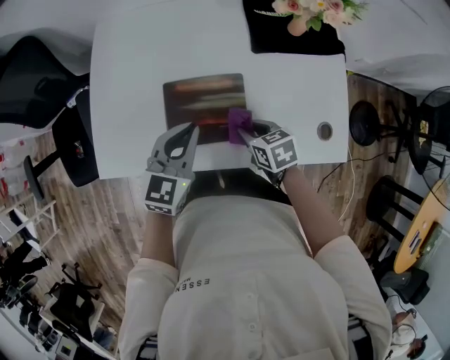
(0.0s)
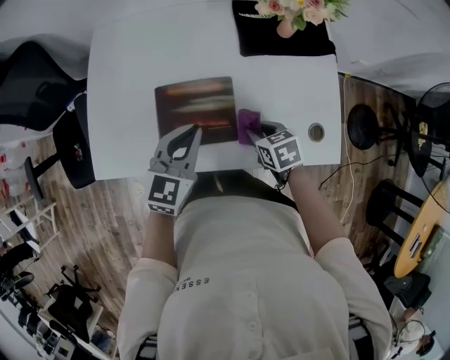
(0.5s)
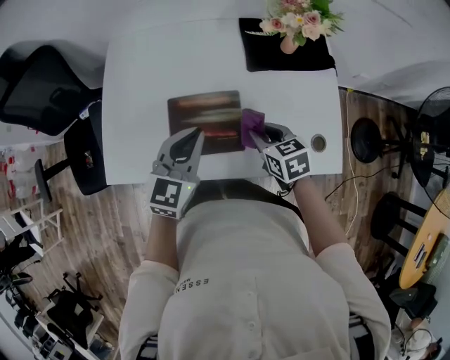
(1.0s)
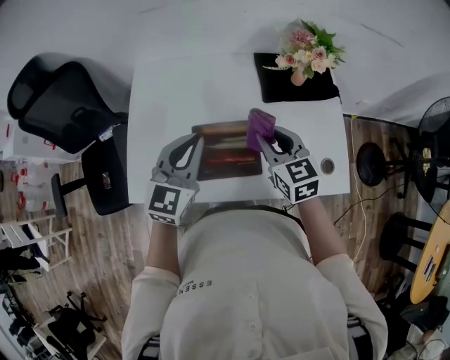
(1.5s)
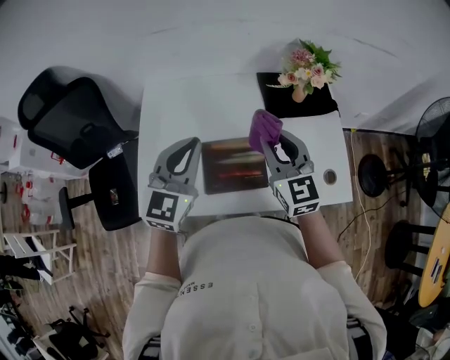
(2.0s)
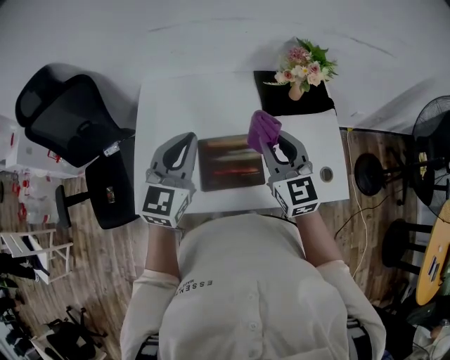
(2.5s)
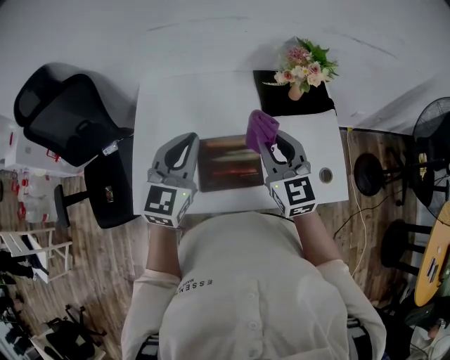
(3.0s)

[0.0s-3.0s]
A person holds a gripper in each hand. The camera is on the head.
0.0s to 1.5s: The right gripper shifts some 20 cm upward, and turns by some 40 degrees. The left gripper goes about 10 cm upward.
1.5s to 3.0s: The right gripper goes approximately 10 cm upward, while the left gripper shifts by approximately 5 cm.

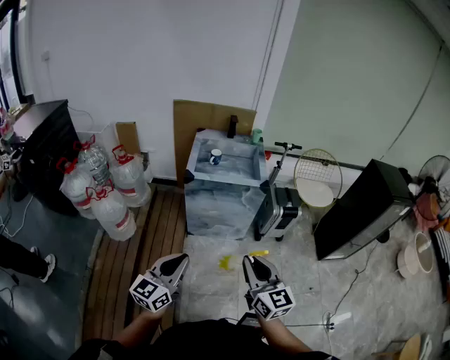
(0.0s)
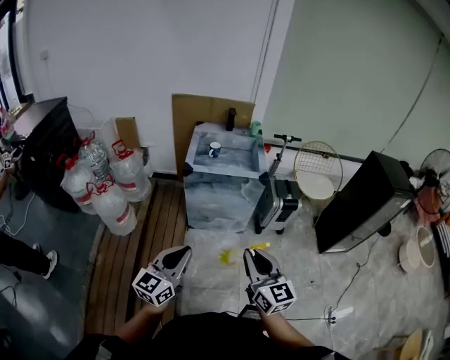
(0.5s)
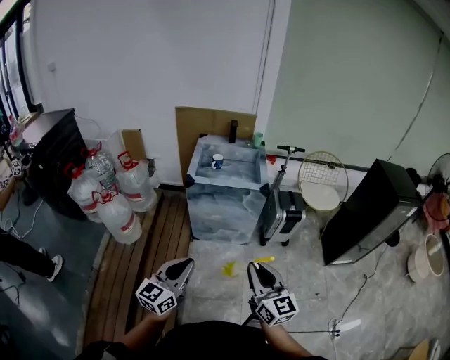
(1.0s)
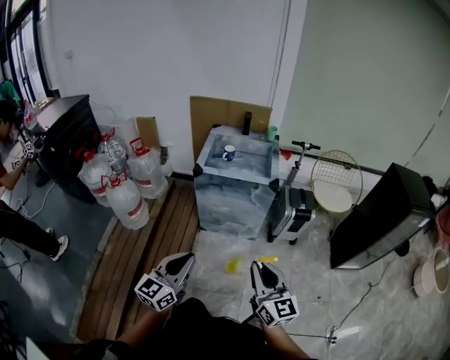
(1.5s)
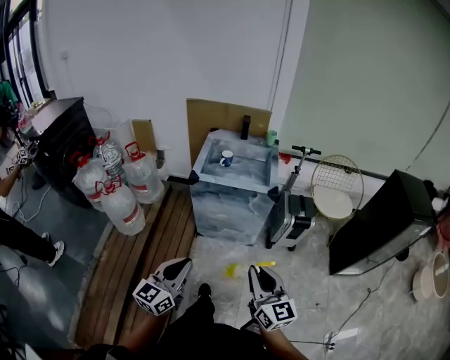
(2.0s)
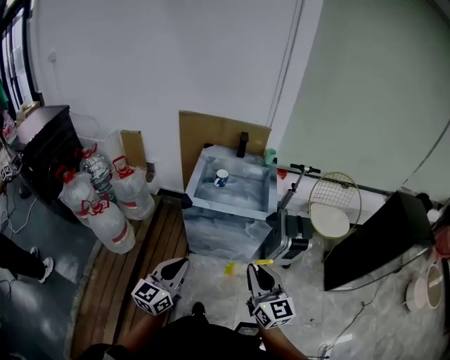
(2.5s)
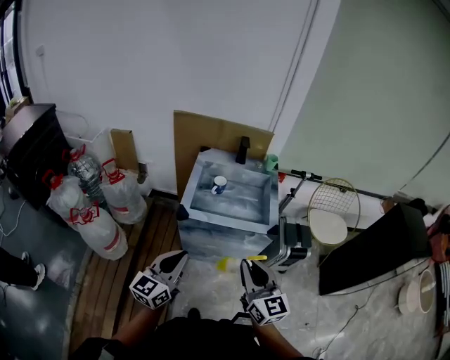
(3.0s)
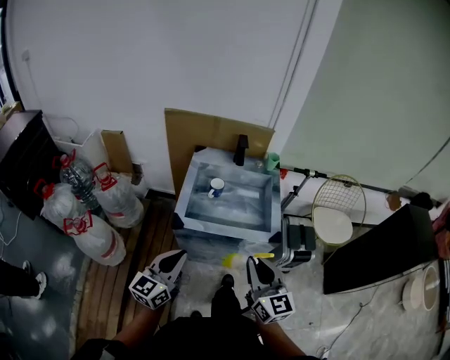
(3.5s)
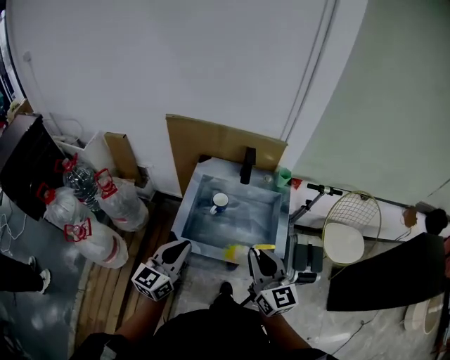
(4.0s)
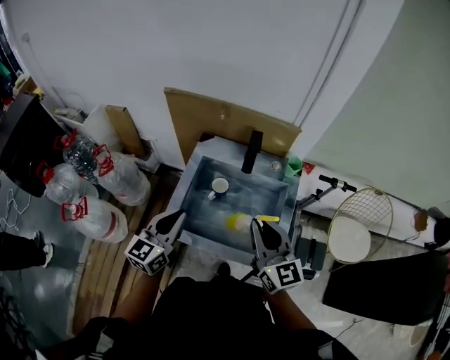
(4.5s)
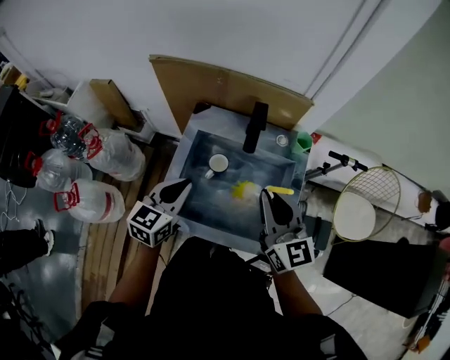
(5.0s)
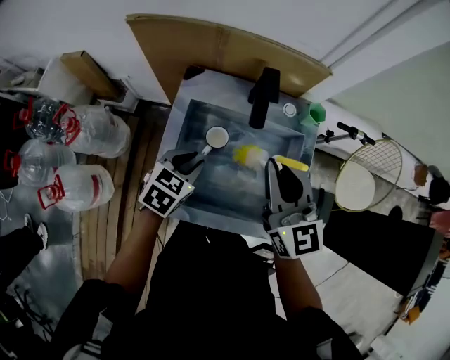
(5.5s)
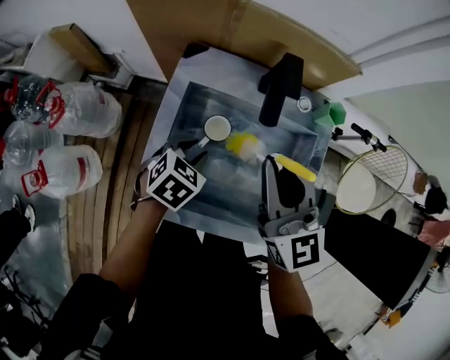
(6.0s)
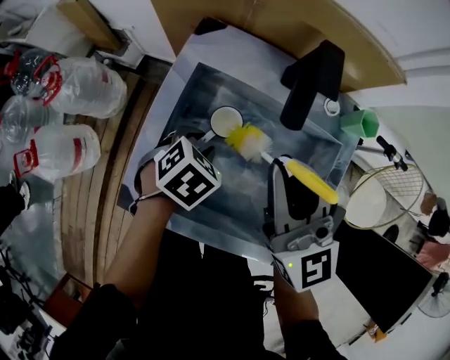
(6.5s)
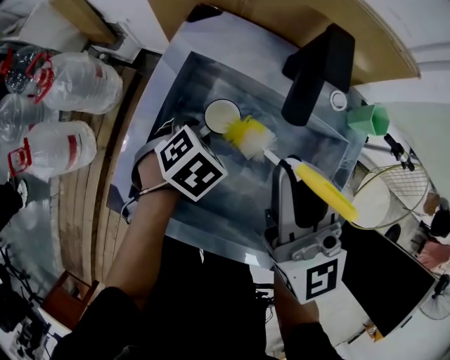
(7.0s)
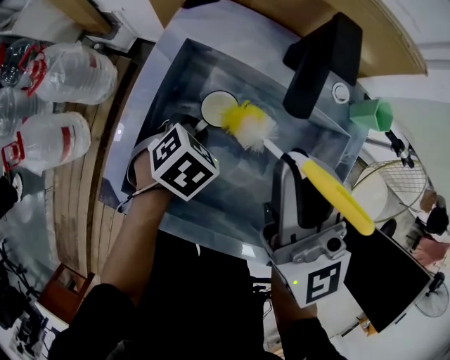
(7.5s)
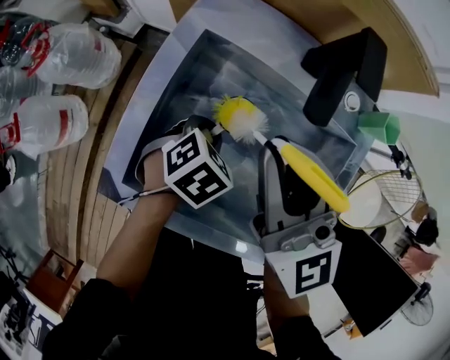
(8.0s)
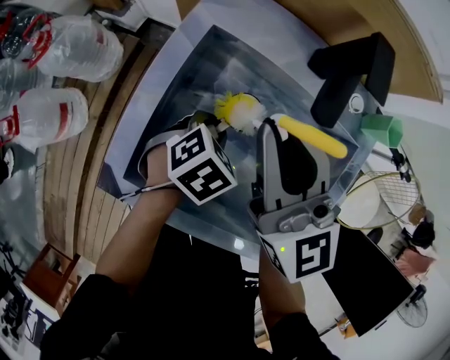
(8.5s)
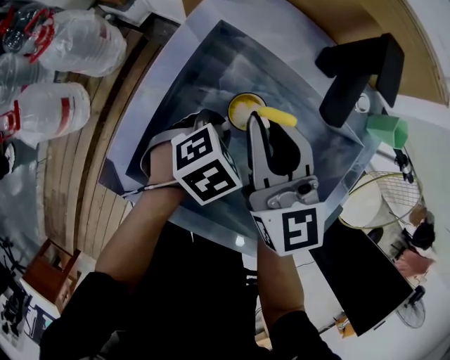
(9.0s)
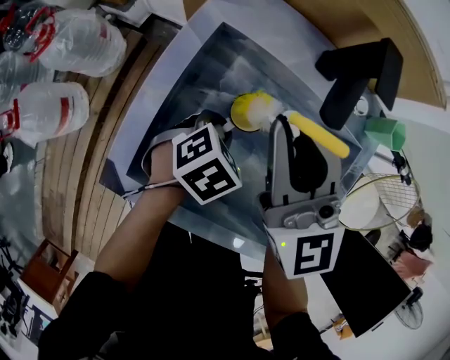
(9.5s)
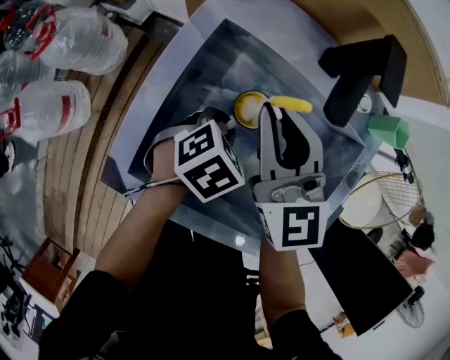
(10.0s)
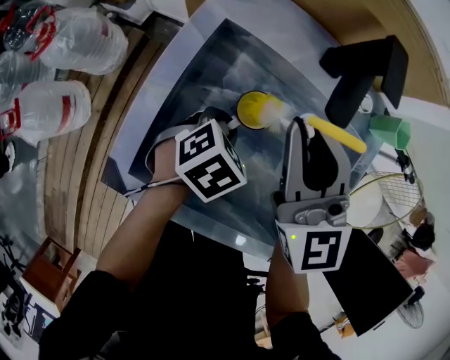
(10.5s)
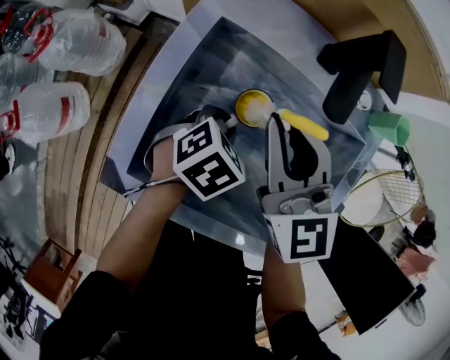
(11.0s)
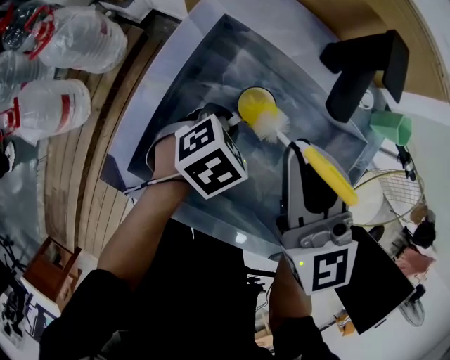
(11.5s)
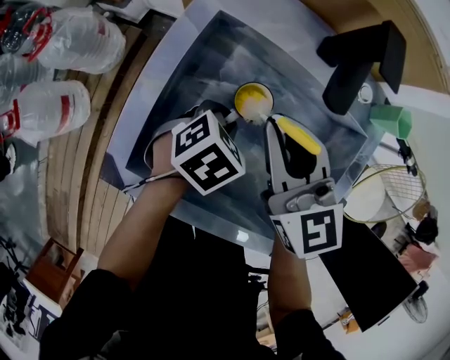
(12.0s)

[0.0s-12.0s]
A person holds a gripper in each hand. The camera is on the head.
0.0s to 2.0s: The two grippers go some 10 cm to the right.
2.0s to 4.0s: The two grippers travel together, forward, roughly 50 cm.
4.0s to 6.0s: The right gripper heads forward, covering approximately 25 cm. The left gripper moves downward and forward, some 35 cm, tips its fingers downward by some 60 degrees, and opens up.
6.0s to 8.0s: The left gripper moves downward, about 10 cm, while the right gripper ends up about 5 cm from where it was.
8.0s to 10.0s: The right gripper swings up and down, approximately 10 cm each way, with 2 reversals.

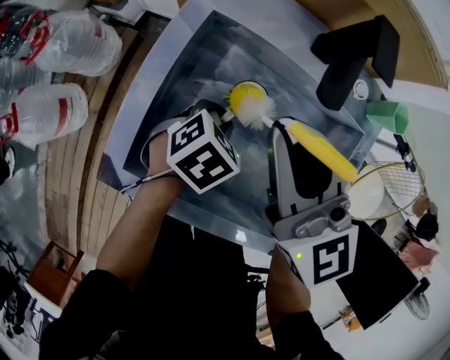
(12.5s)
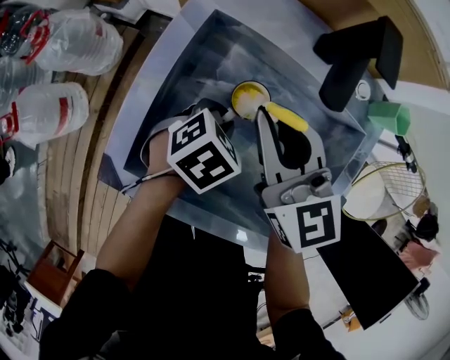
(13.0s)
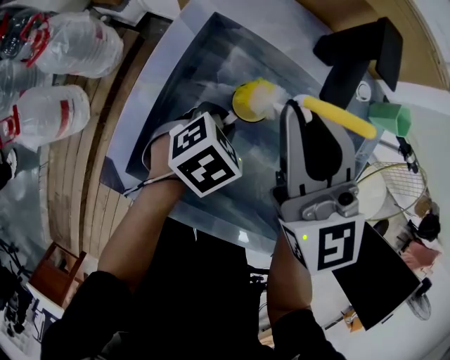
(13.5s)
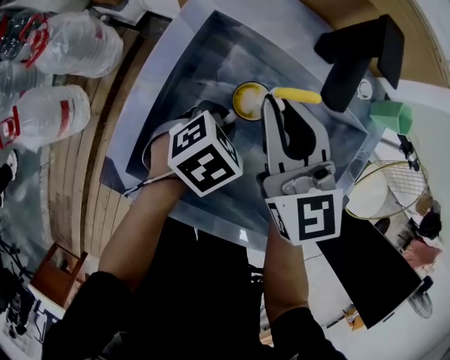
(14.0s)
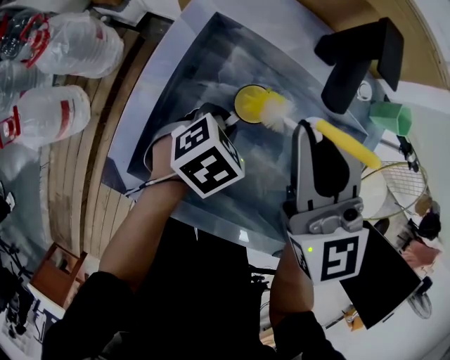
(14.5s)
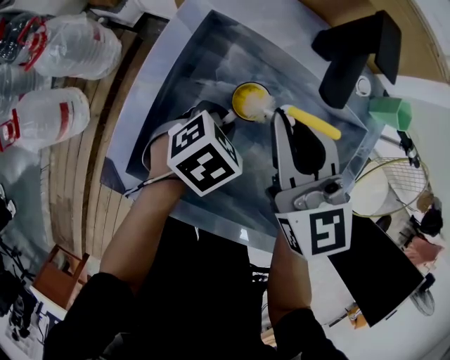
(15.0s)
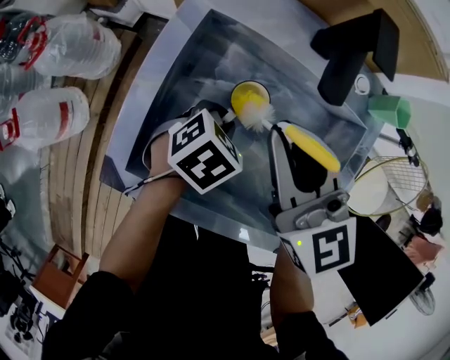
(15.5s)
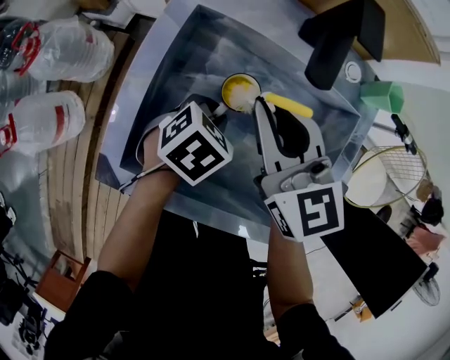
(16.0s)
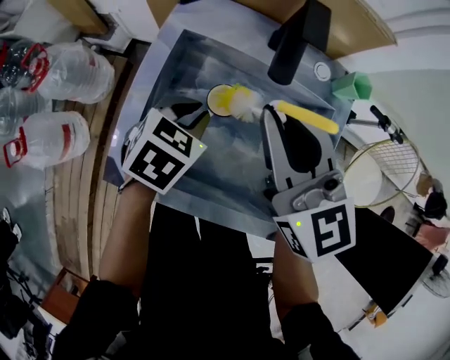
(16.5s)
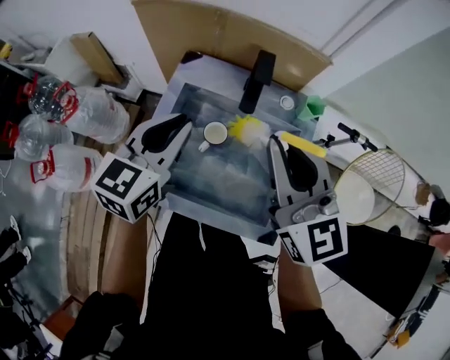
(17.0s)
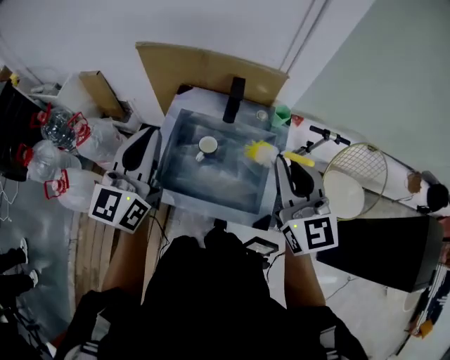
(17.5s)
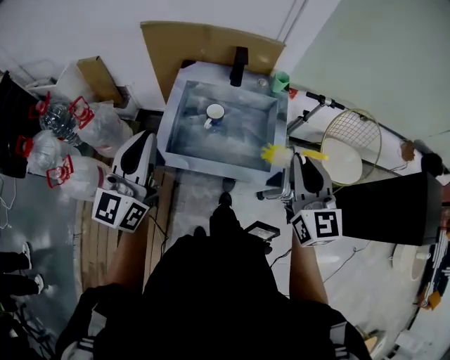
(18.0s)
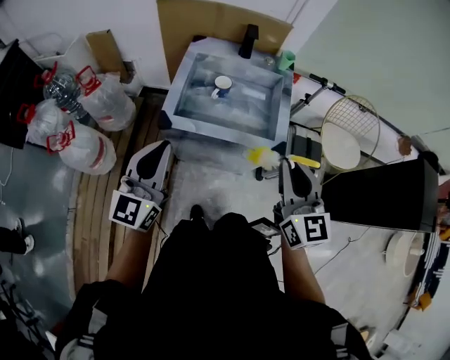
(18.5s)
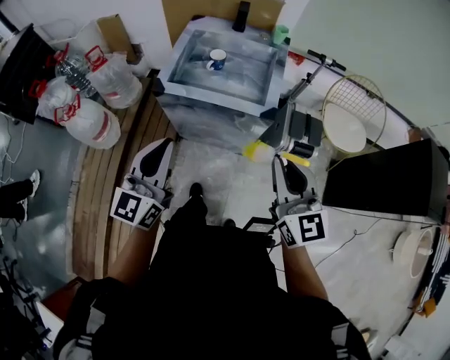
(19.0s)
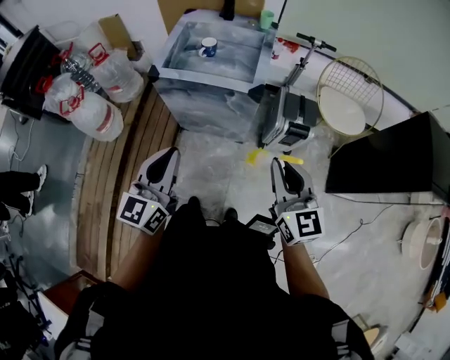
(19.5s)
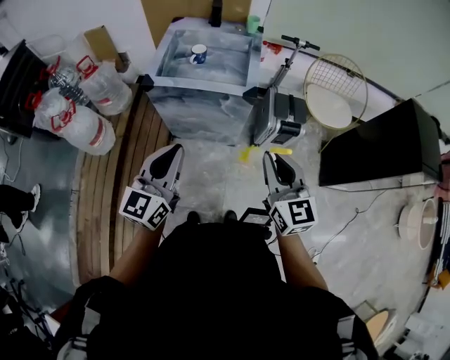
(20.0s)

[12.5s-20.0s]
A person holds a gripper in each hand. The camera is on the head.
12.5s to 14.5s: The right gripper goes up and down, approximately 5 cm each way, reversing 3 times.
14.5s to 16.5s: The right gripper changes place by roughly 5 cm, while the left gripper moves upward, roughly 10 cm.
16.5s to 18.0s: The left gripper heads upward and backward, covering about 40 cm, and tips its fingers upward by some 60 degrees, while the right gripper heads backward, upward and to the right, covering some 35 cm, and swivels approximately 30 degrees.
18.0s to 20.0s: The left gripper moves backward and to the right, about 40 cm. Meanwhile the right gripper goes some 35 cm backward.

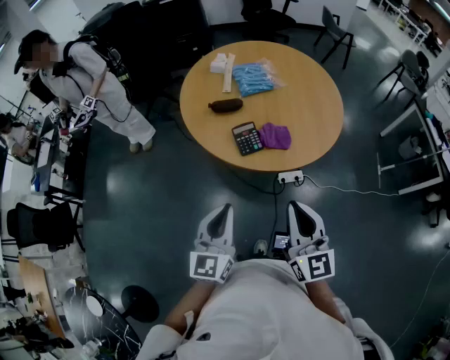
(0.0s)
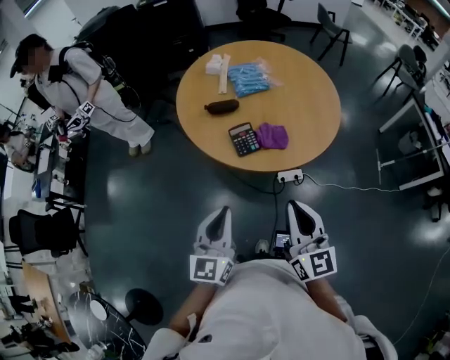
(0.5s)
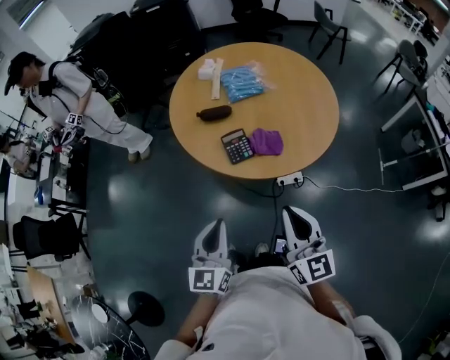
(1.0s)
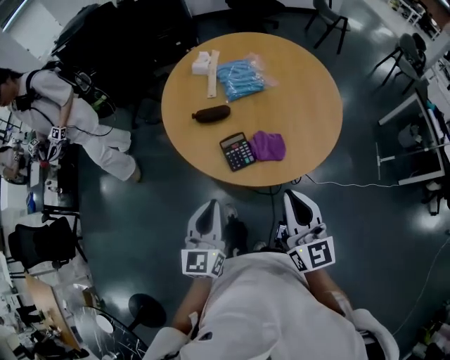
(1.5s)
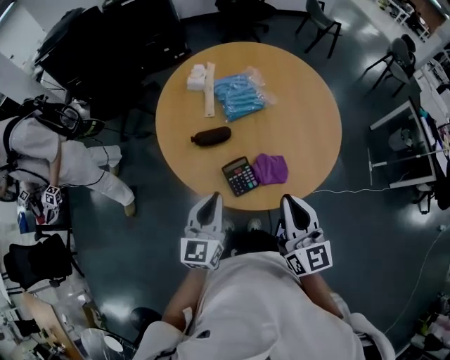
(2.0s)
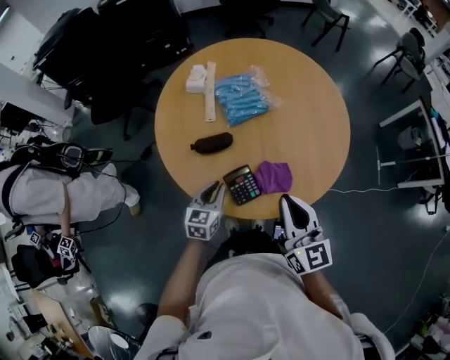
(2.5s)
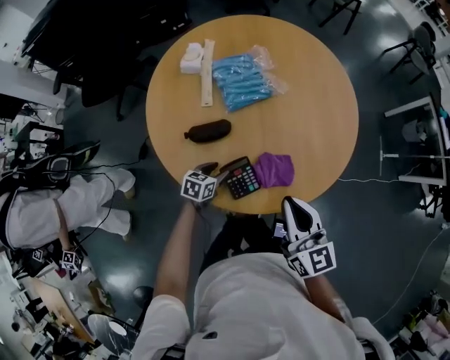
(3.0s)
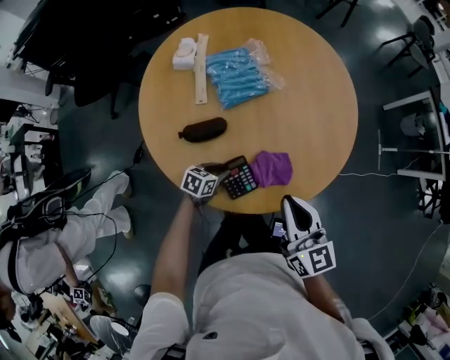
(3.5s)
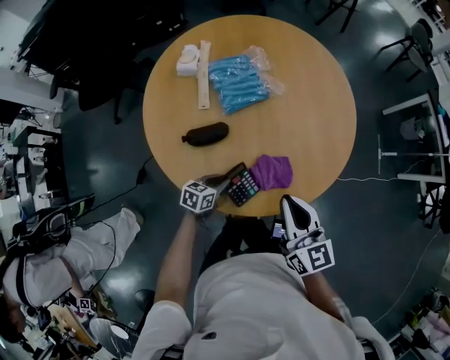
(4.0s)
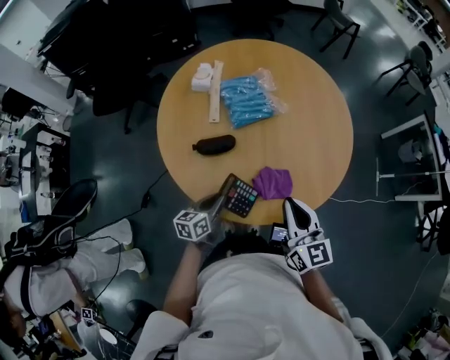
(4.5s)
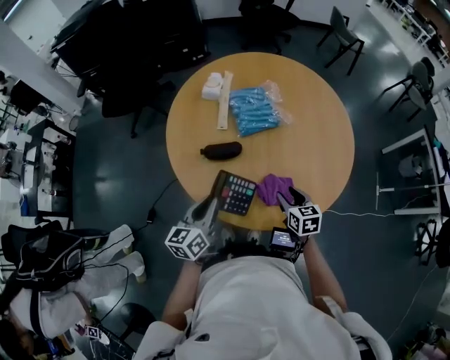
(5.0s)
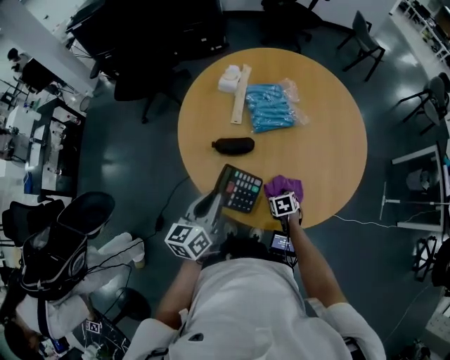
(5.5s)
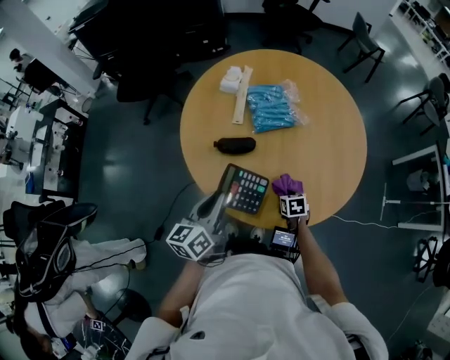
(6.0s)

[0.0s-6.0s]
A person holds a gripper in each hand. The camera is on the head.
0.0s to 2.0s: The two grippers go about 25 cm forward.
2.0s to 4.0s: The right gripper is displaced forward and downward by roughly 10 cm. Meanwhile the left gripper travels downward by about 30 cm, tips its fingers downward by some 30 degrees, and opens and closes again.
4.0s to 6.0s: The left gripper moves upward, some 25 cm, and turns by about 50 degrees, while the right gripper shifts about 30 cm downward, tips its fingers downward by some 50 degrees, and opens, then closes once more.
